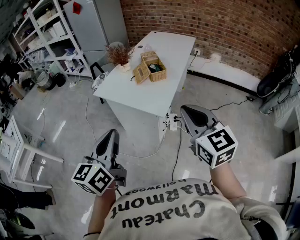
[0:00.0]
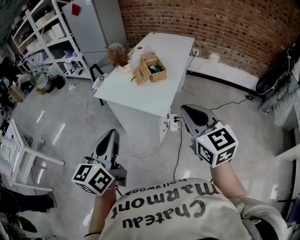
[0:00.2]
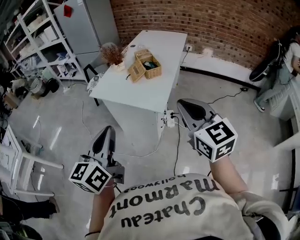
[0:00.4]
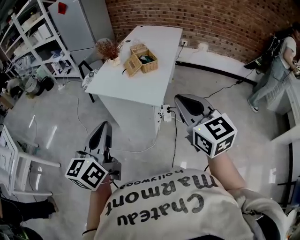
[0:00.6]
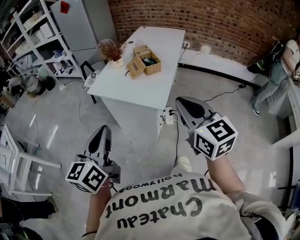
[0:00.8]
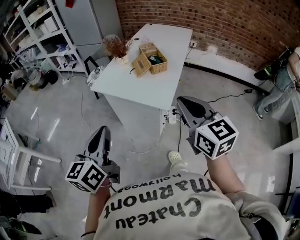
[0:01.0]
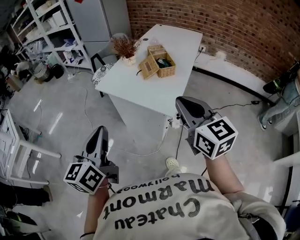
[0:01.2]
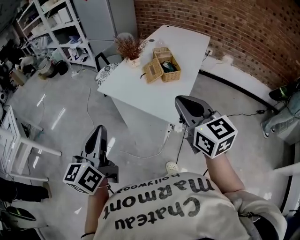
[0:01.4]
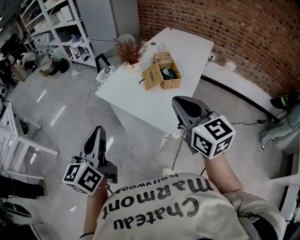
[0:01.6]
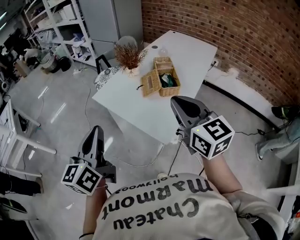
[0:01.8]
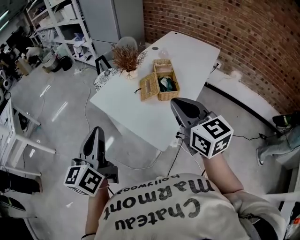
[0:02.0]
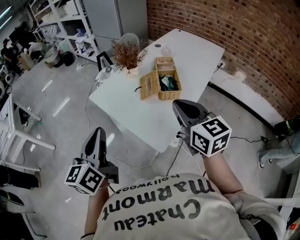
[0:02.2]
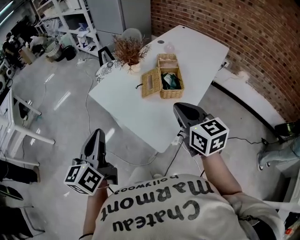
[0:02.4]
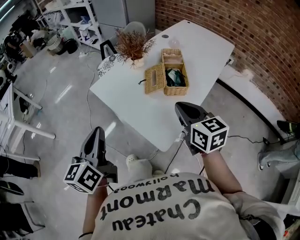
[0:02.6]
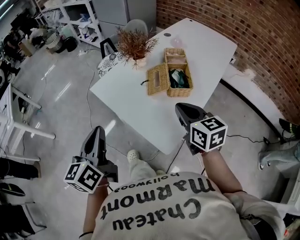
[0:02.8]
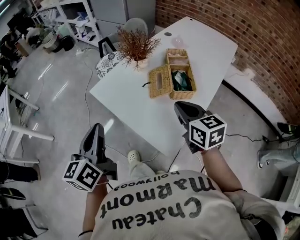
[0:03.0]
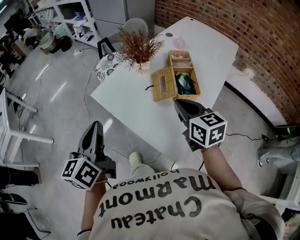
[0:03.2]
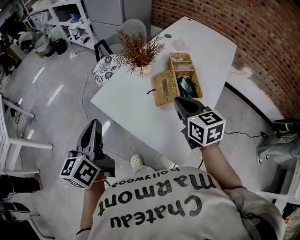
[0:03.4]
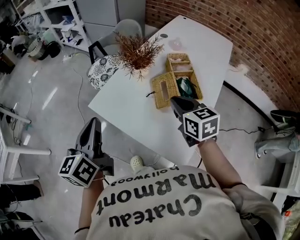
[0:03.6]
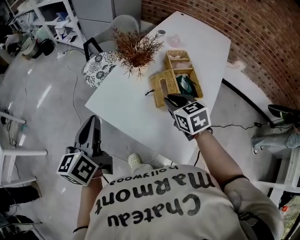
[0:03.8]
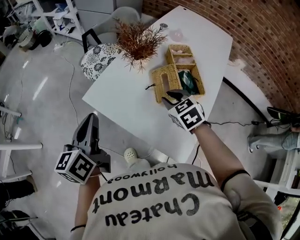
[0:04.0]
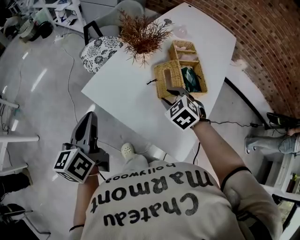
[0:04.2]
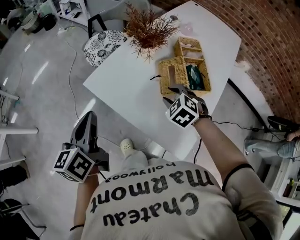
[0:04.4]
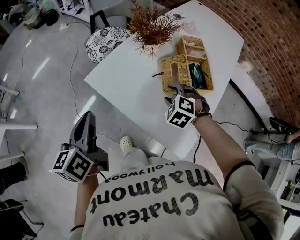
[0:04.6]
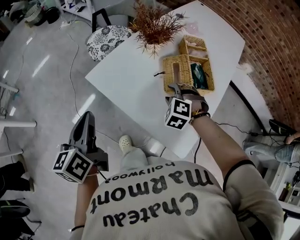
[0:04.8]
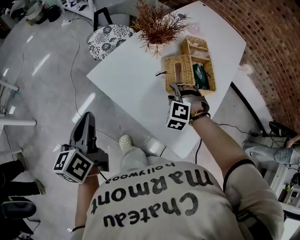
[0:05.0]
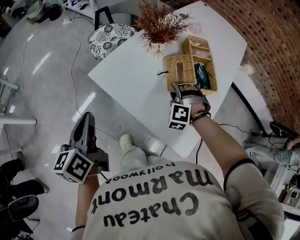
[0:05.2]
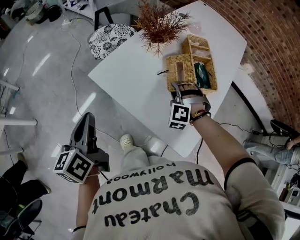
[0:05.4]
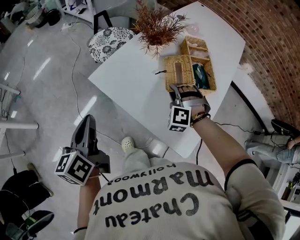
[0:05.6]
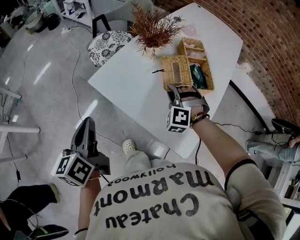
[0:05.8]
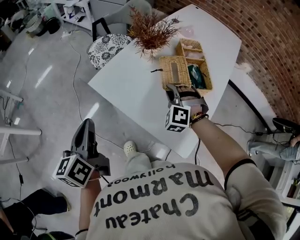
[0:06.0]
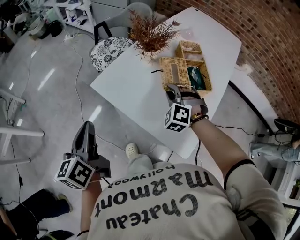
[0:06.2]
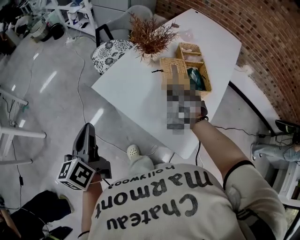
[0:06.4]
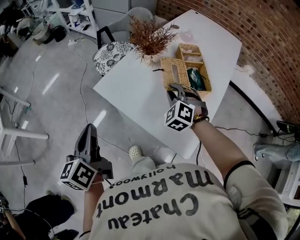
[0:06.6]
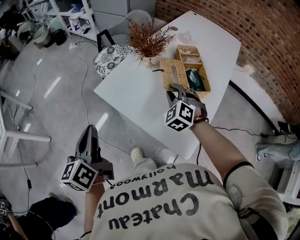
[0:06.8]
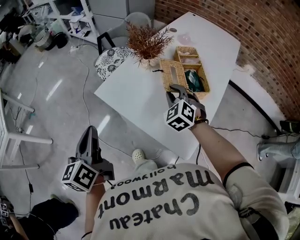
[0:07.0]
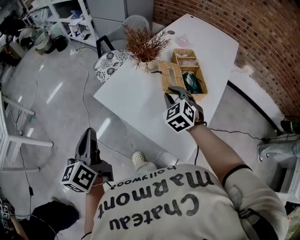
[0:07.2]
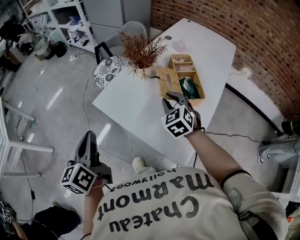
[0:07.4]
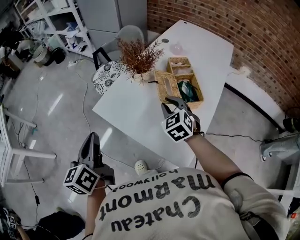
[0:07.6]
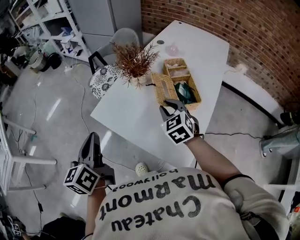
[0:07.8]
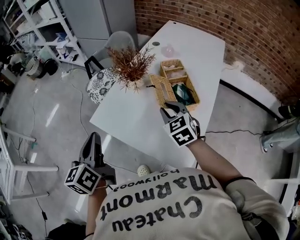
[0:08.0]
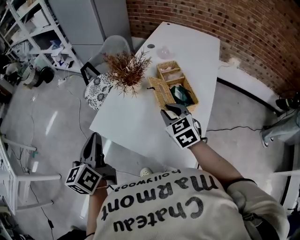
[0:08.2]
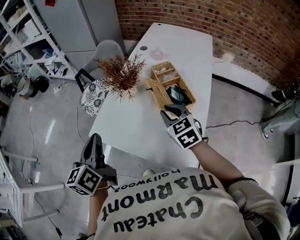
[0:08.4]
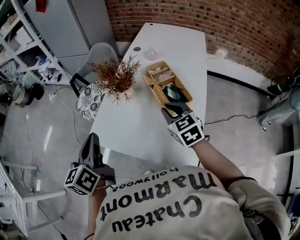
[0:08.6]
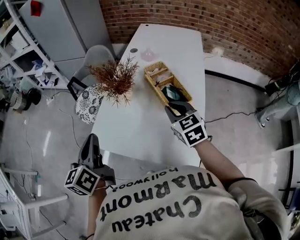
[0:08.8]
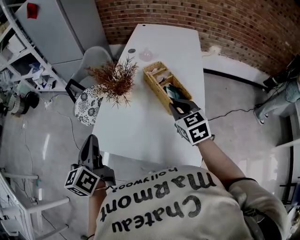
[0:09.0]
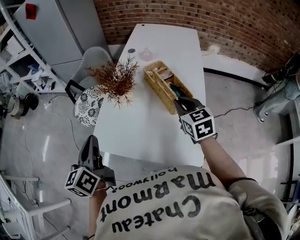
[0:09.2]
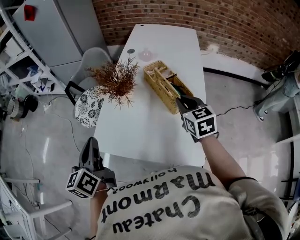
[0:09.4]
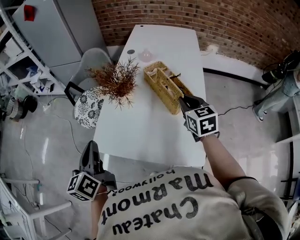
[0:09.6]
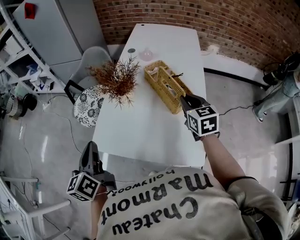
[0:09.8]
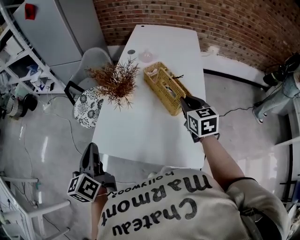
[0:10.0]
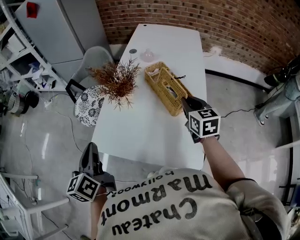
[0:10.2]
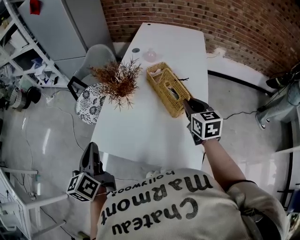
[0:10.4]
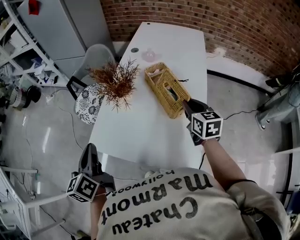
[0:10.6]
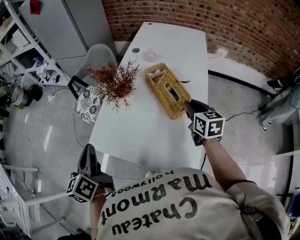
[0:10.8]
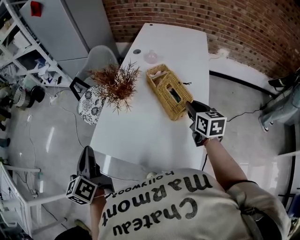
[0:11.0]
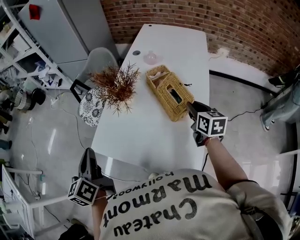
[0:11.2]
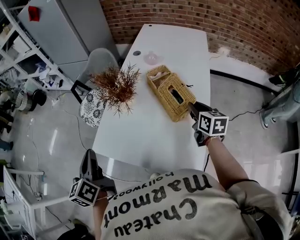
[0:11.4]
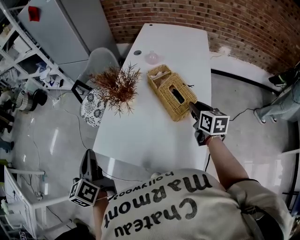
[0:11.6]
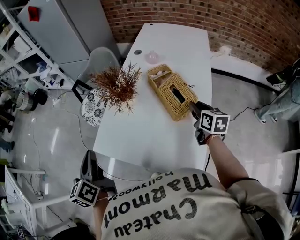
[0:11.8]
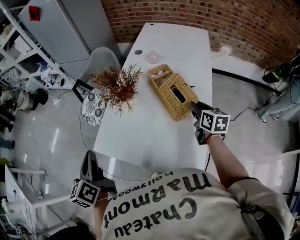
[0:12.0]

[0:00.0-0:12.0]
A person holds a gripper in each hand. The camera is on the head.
0:00.0 to 0:01.6: The left gripper shifts roughly 15 cm forward and to the left. The right gripper travels forward by about 20 cm.
0:01.6 to 0:03.0: The two grippers go about 20 cm forward and downward. The right gripper turns by roughly 20 degrees.
0:03.0 to 0:04.4: The left gripper heads forward, to the left and downward, covering roughly 15 cm; the right gripper is displaced downward, forward and to the left by approximately 20 cm, tips its fingers downward by approximately 30 degrees, and opens.
0:04.4 to 0:06.0: The right gripper changes its angle by about 40 degrees.
0:06.0 to 0:07.6: The grippers both shift upward by some 5 cm. The right gripper twists approximately 50 degrees clockwise, seen from behind.
0:07.6 to 0:09.0: The right gripper is displaced to the right by some 5 cm, and changes its angle by approximately 30 degrees. Meanwhile the left gripper heads forward, covering roughly 15 cm.
0:09.0 to 0:10.4: The right gripper is displaced to the right by approximately 5 cm.
0:10.4 to 0:12.0: The right gripper heads to the right, covering about 5 cm.

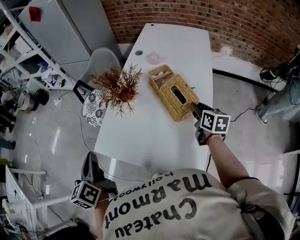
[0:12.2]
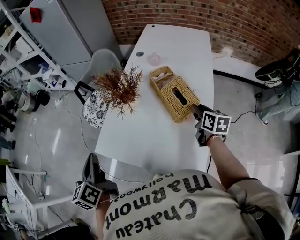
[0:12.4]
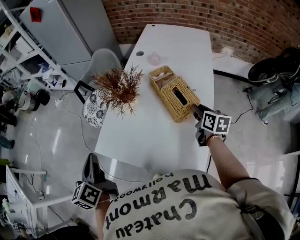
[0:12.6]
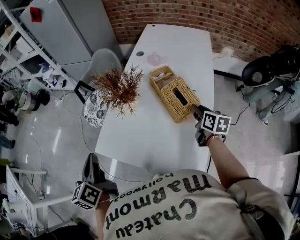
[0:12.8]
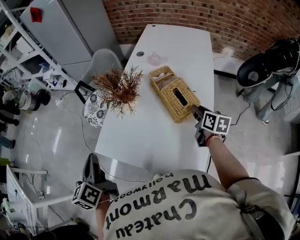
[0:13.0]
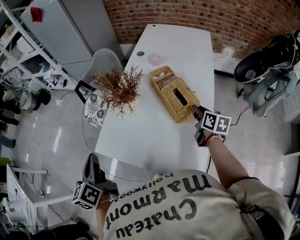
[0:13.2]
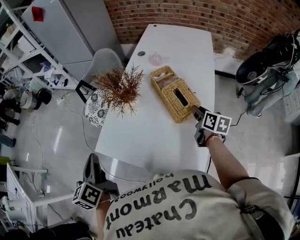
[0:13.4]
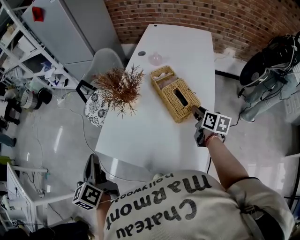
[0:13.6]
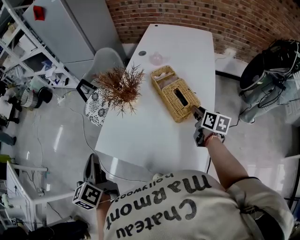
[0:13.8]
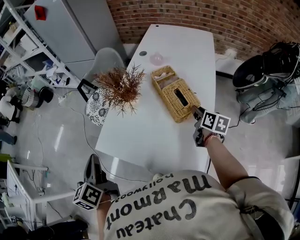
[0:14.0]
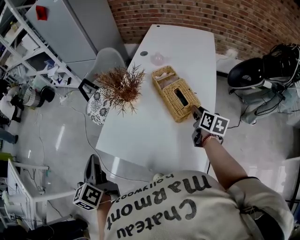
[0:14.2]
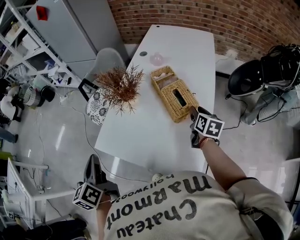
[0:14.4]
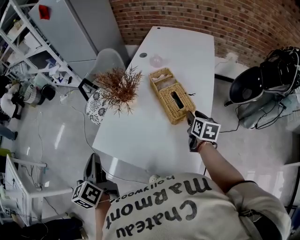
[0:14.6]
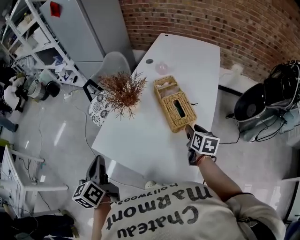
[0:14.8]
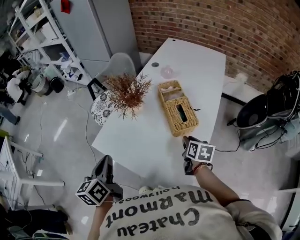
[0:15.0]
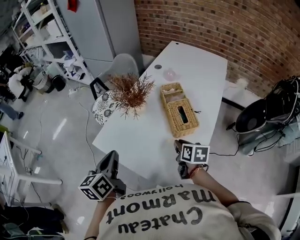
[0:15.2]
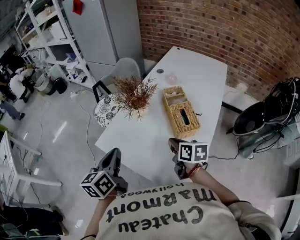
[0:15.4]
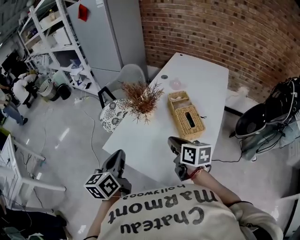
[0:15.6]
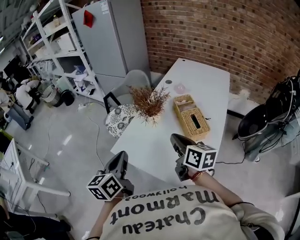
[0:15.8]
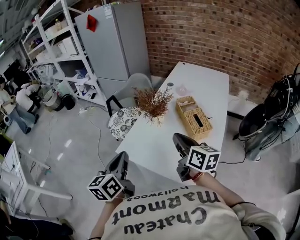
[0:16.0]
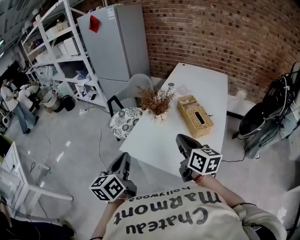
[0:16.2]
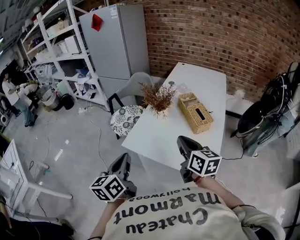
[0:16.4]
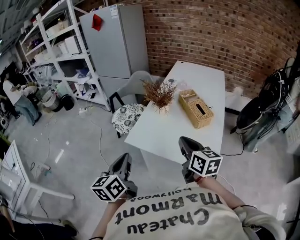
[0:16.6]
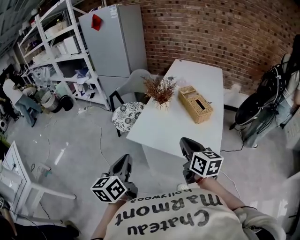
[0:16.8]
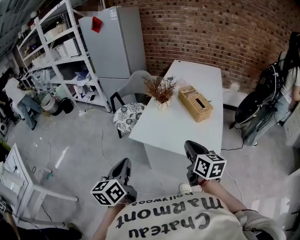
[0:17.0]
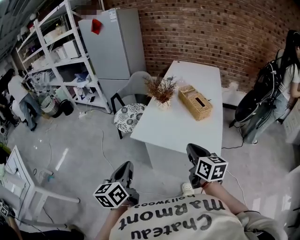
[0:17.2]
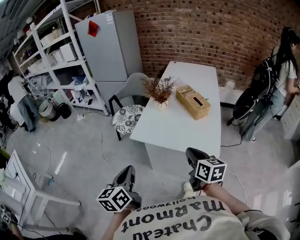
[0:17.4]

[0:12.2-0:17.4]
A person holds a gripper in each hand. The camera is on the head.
0:12.2 to 0:14.0: The grippers stay close to where they were, moving slightly.
0:14.0 to 0:15.6: The left gripper moves to the right, approximately 10 cm; the right gripper travels to the left and upward by some 20 cm, rotates roughly 30 degrees, and closes its fingers.
0:15.6 to 0:17.4: Both grippers travel together backward and to the left, about 25 cm. The right gripper swivels some 20 degrees.

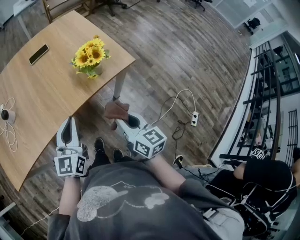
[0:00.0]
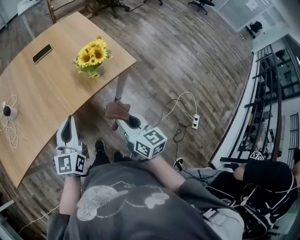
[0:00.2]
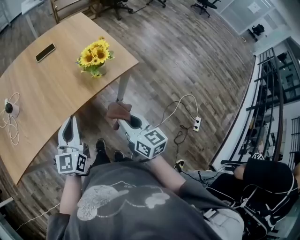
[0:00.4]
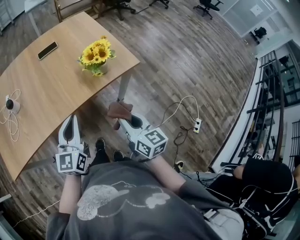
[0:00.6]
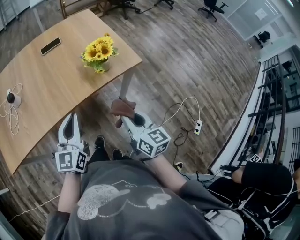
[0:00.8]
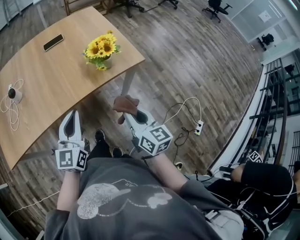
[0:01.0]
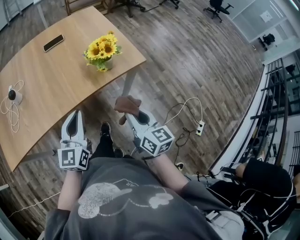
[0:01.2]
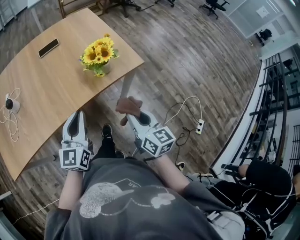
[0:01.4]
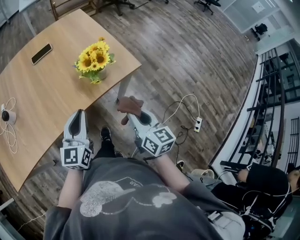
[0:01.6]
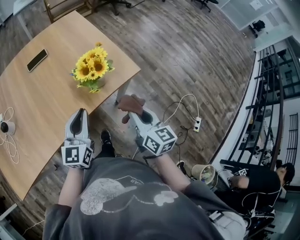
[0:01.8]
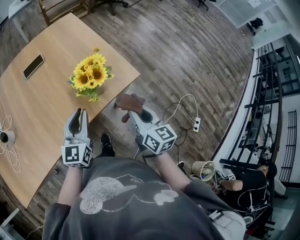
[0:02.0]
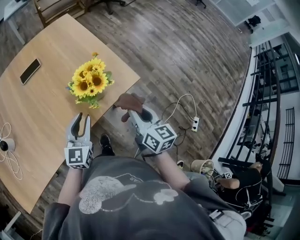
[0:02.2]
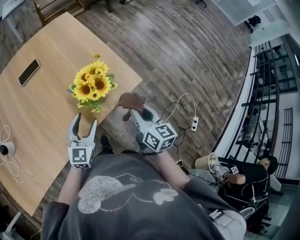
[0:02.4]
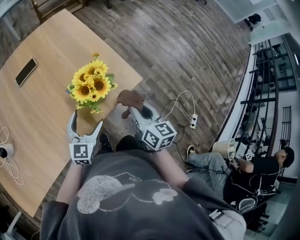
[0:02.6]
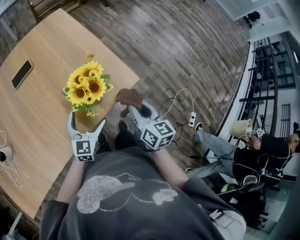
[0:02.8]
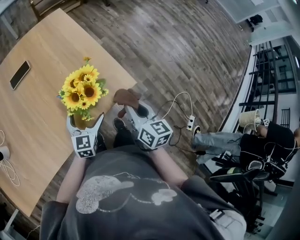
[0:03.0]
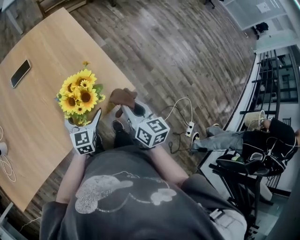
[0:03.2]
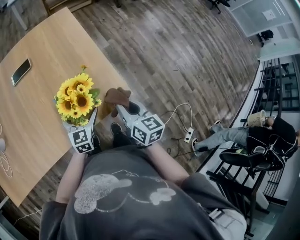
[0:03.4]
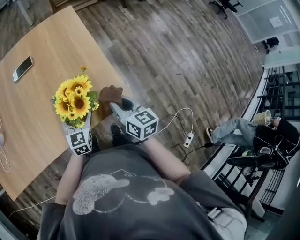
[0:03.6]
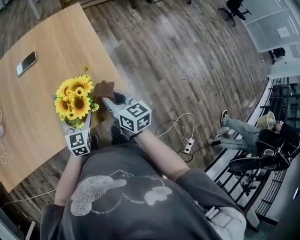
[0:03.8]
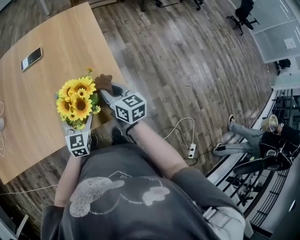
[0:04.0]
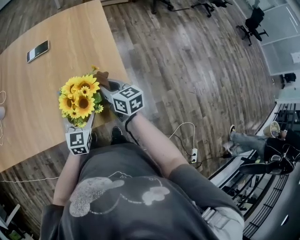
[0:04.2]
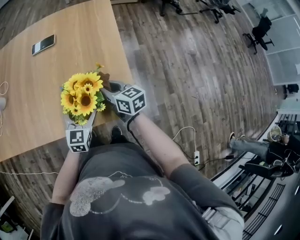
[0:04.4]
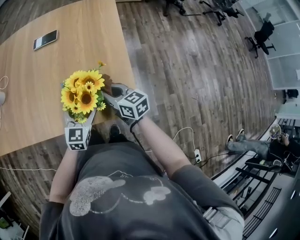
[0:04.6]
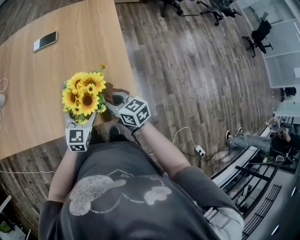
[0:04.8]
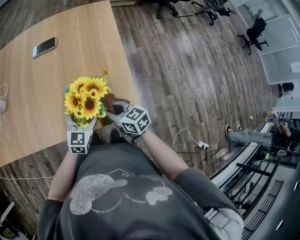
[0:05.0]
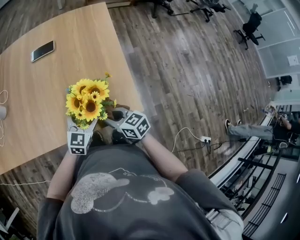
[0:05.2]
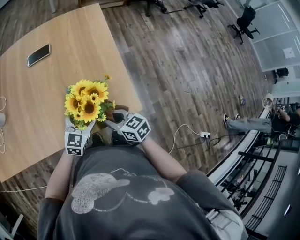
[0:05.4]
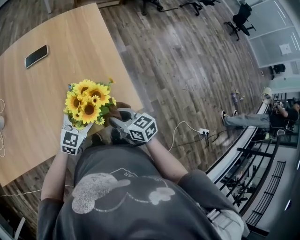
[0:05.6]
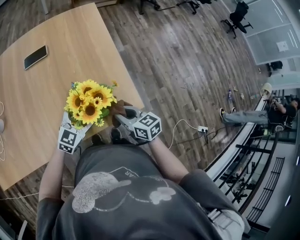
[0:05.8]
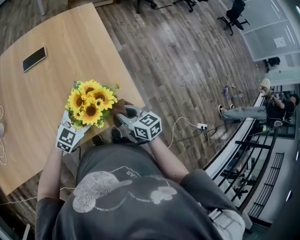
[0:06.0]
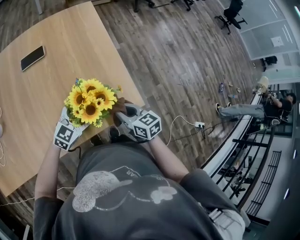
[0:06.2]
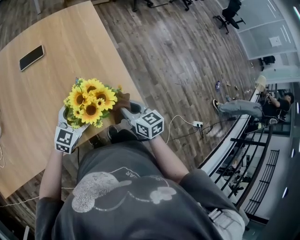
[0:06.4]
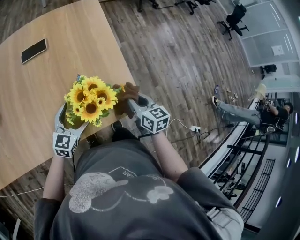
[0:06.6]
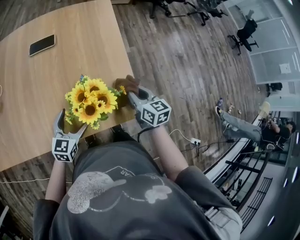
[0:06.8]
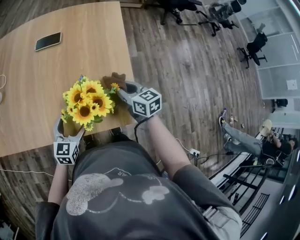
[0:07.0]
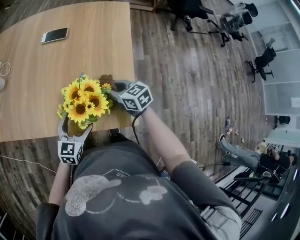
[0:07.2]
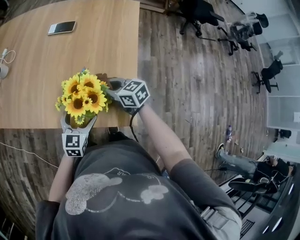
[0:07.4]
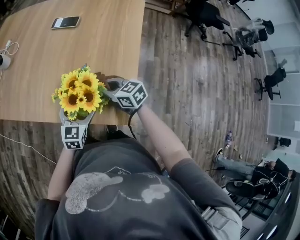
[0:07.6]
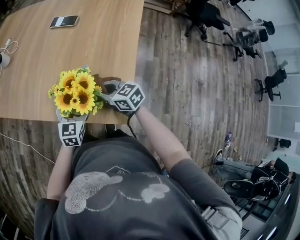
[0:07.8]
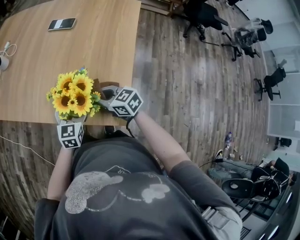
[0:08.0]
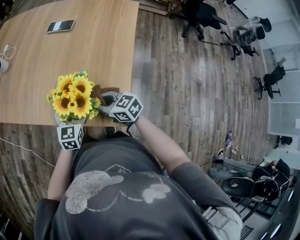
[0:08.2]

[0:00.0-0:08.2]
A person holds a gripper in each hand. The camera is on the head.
0:00.0 to 0:01.6: The left gripper ends up roughly 5 cm from where it was. The right gripper shifts roughly 5 cm to the right.
0:01.6 to 0:03.2: The right gripper moves forward, roughly 20 cm. Meanwhile the left gripper shifts roughly 25 cm forward and downward, changes its angle by some 20 degrees, and opens.
0:03.2 to 0:05.0: The right gripper ends up about 15 cm from where it was, and swivels about 60 degrees.
0:05.0 to 0:06.6: The right gripper shifts by about 10 cm, and rotates some 40 degrees.
0:06.6 to 0:08.2: The right gripper moves roughly 10 cm, and rotates roughly 70 degrees; the left gripper turns by some 40 degrees.
